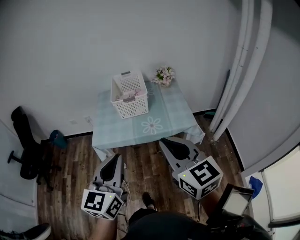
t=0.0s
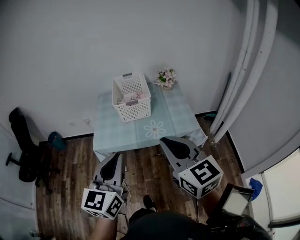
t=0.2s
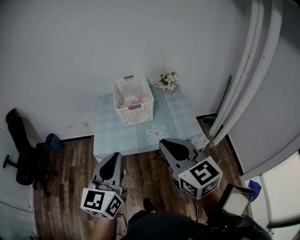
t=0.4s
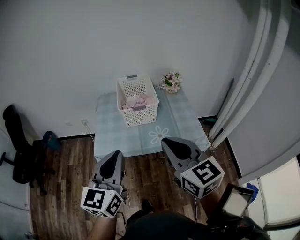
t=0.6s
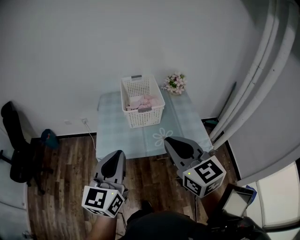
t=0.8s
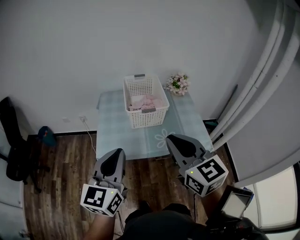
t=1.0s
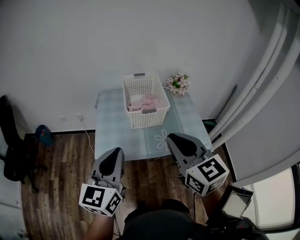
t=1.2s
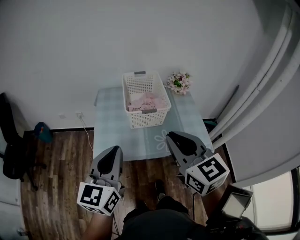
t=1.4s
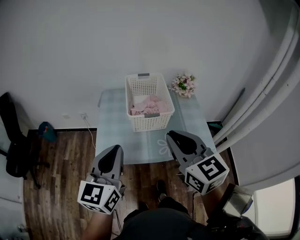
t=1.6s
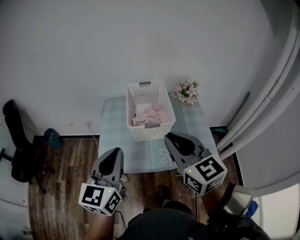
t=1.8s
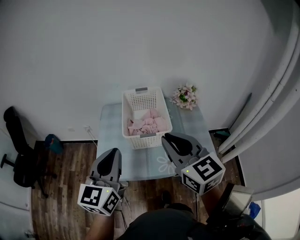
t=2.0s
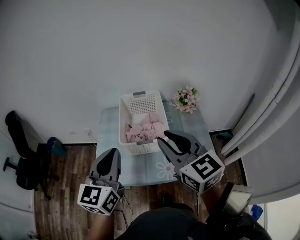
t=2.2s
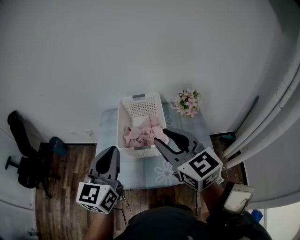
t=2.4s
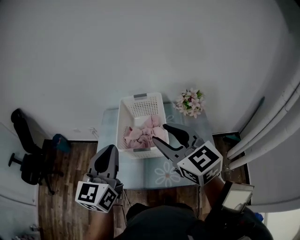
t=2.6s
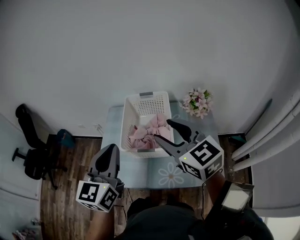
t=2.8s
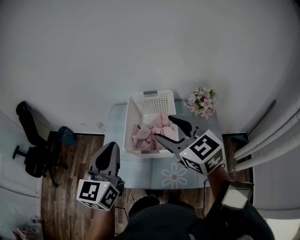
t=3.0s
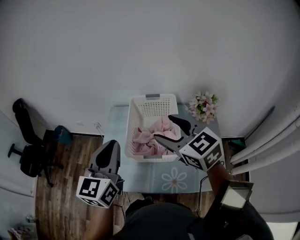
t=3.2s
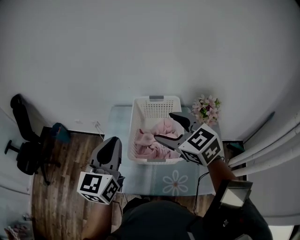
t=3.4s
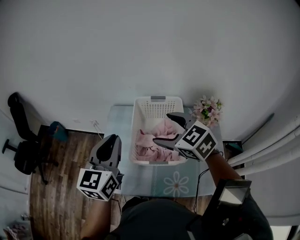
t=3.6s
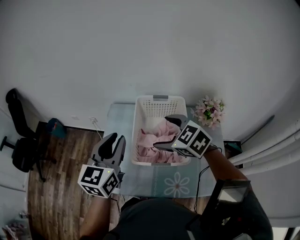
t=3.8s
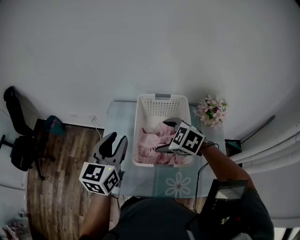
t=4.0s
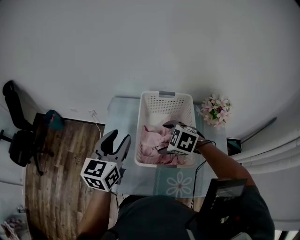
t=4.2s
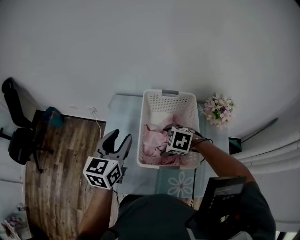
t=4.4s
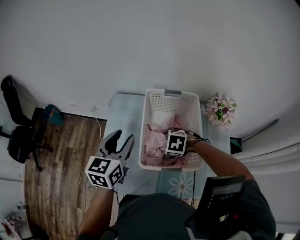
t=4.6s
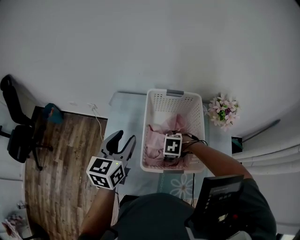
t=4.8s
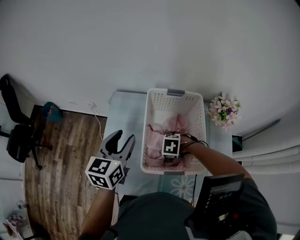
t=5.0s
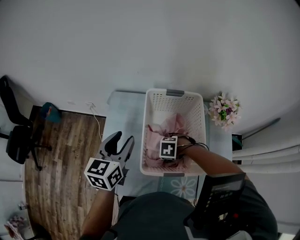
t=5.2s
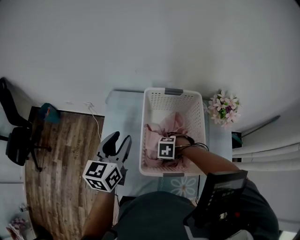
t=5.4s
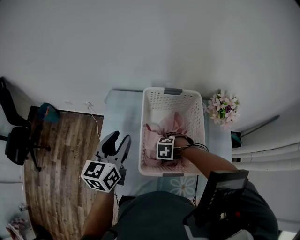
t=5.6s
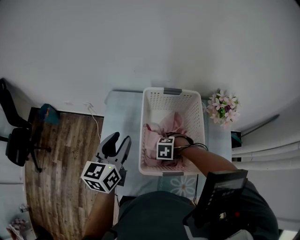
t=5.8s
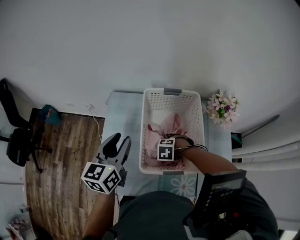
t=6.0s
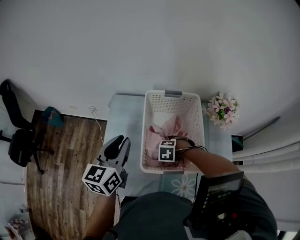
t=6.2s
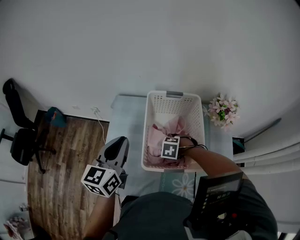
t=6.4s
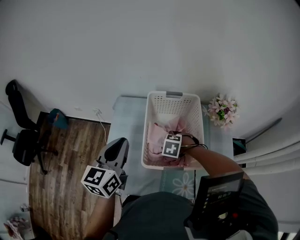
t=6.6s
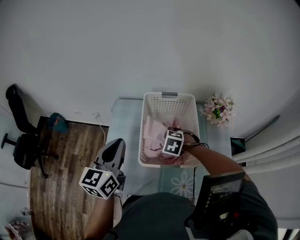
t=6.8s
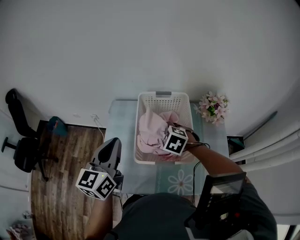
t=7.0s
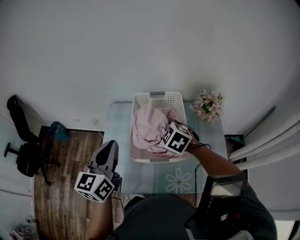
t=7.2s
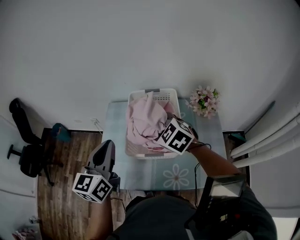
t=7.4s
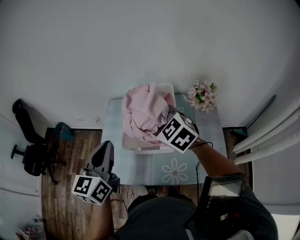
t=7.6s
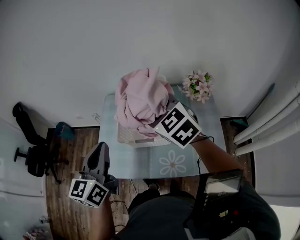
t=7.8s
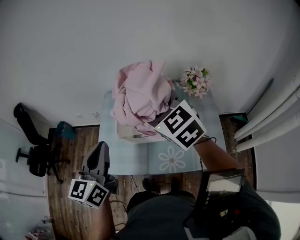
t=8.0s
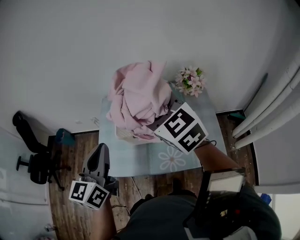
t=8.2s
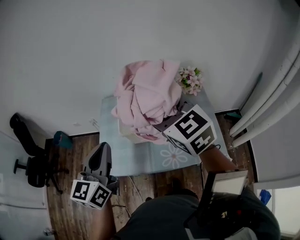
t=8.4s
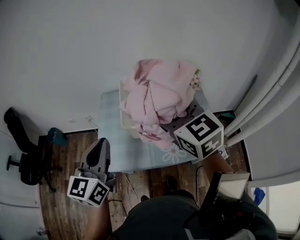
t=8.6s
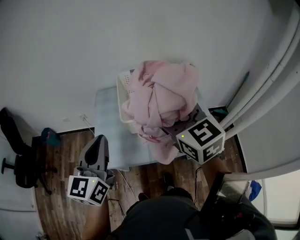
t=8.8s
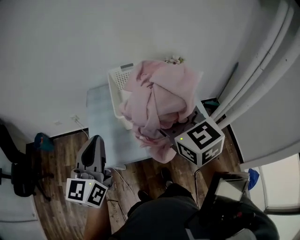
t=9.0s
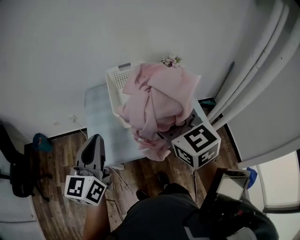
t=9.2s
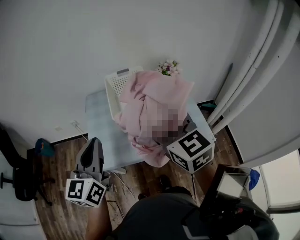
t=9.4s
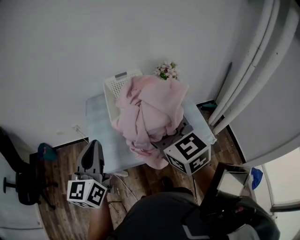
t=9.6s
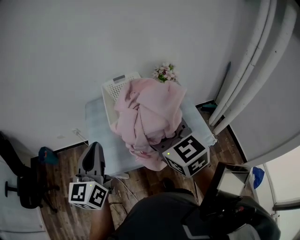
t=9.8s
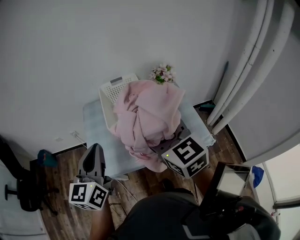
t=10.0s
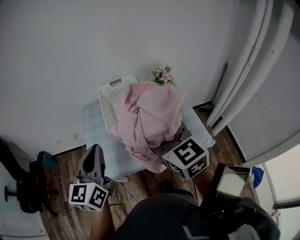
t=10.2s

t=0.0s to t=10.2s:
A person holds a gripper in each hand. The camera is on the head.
t=0.0s to t=1.4s: Both grippers travel together forward and to the left, approximately 25 cm.
t=1.4s to t=3.0s: The right gripper heads forward, covering roughly 25 cm, turns by about 20 degrees, and opens its fingers. Meanwhile the left gripper moves forward and to the right, approximately 25 cm.
t=3.0s to t=4.4s: The left gripper shifts about 20 cm forward and downward, and opens, while the right gripper goes some 30 cm downward and forward, points its fingers approximately 50 degrees further downward, and opens its fingers.
t=4.4s to t=5.8s: The right gripper travels downward by approximately 15 cm, and turns by roughly 20 degrees.
t=5.8s to t=7.2s: The left gripper heads upward, covering roughly 10 cm, and closes. Meanwhile the right gripper heads upward, covering about 20 cm, and points its fingers about 40 degrees further upward.
t=7.2s to t=8.8s: The left gripper heads backward, covering roughly 15 cm, while the right gripper is displaced backward and upward by approximately 30 cm, and tilts its fingers roughly 40 degrees upward.
t=8.8s to t=10.2s: The right gripper ends up roughly 5 cm from where it was.

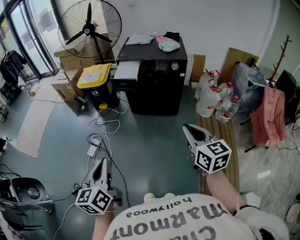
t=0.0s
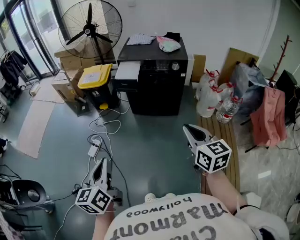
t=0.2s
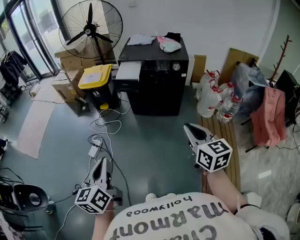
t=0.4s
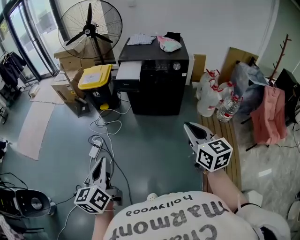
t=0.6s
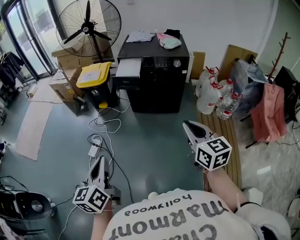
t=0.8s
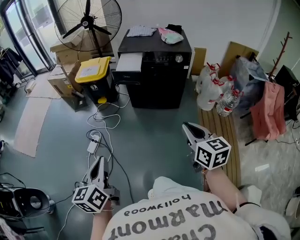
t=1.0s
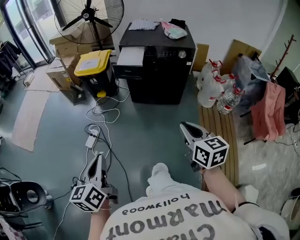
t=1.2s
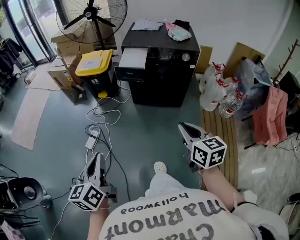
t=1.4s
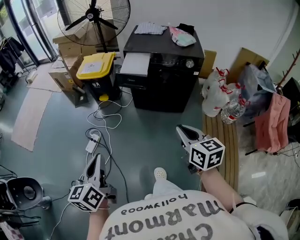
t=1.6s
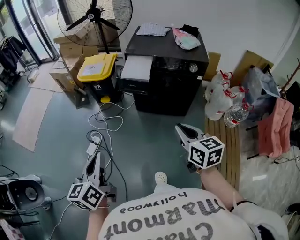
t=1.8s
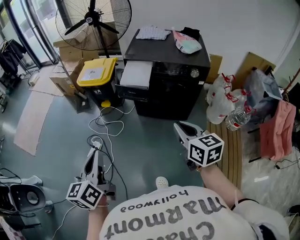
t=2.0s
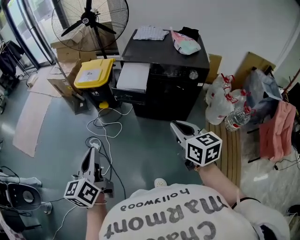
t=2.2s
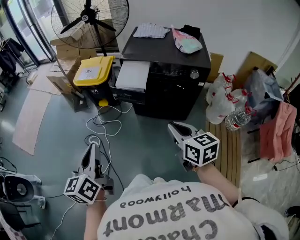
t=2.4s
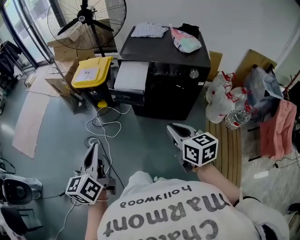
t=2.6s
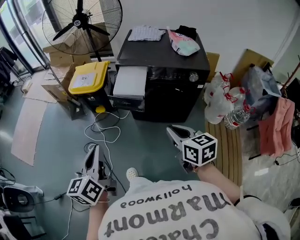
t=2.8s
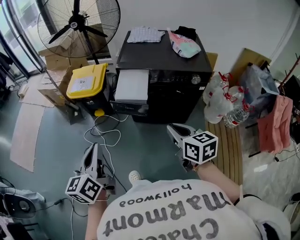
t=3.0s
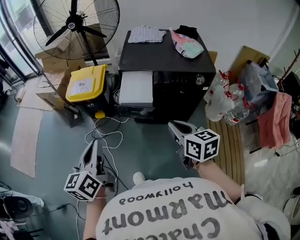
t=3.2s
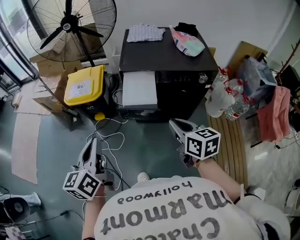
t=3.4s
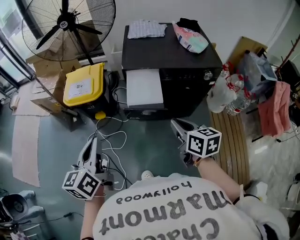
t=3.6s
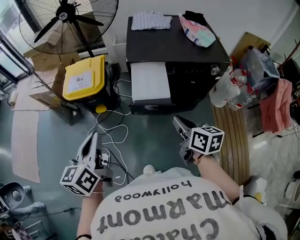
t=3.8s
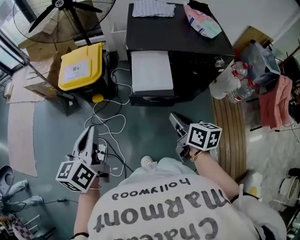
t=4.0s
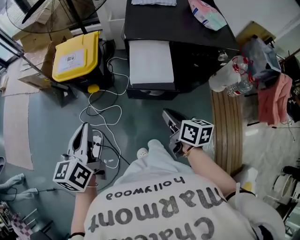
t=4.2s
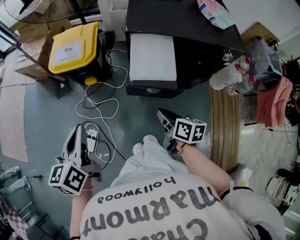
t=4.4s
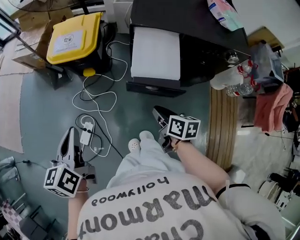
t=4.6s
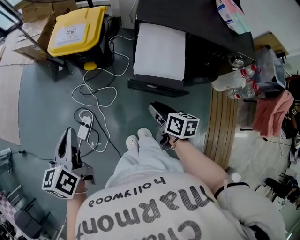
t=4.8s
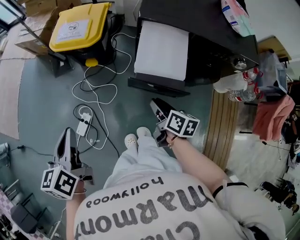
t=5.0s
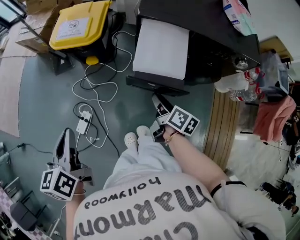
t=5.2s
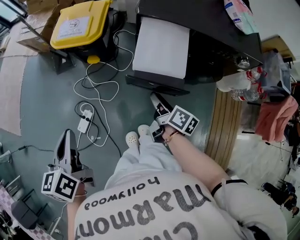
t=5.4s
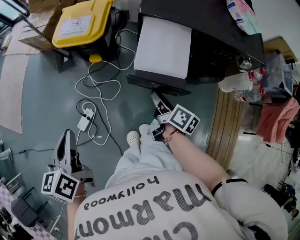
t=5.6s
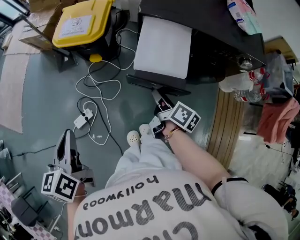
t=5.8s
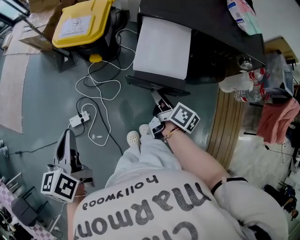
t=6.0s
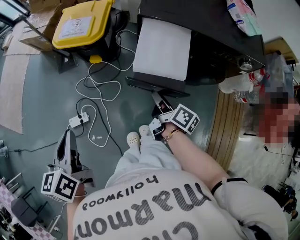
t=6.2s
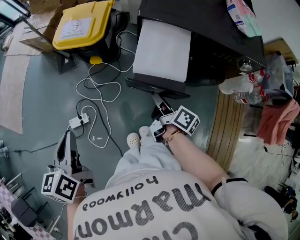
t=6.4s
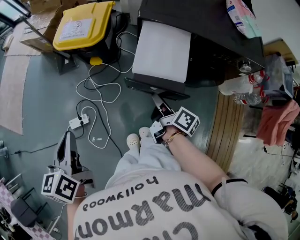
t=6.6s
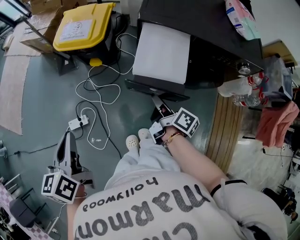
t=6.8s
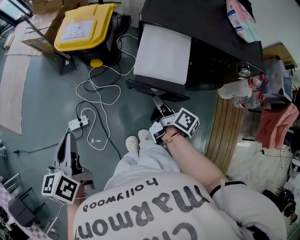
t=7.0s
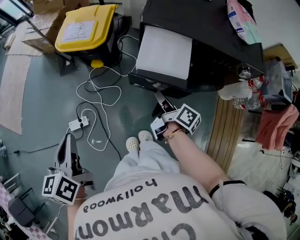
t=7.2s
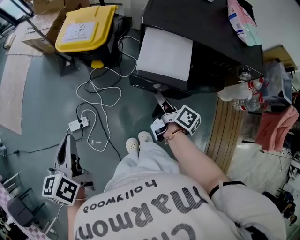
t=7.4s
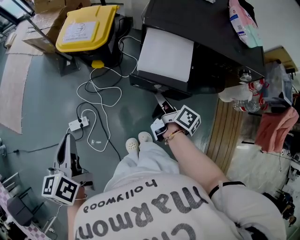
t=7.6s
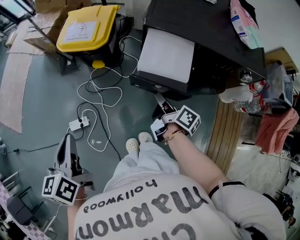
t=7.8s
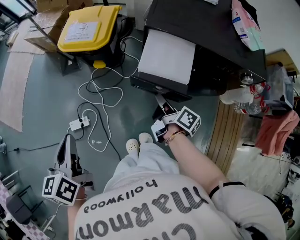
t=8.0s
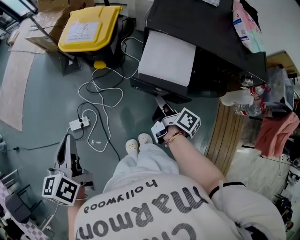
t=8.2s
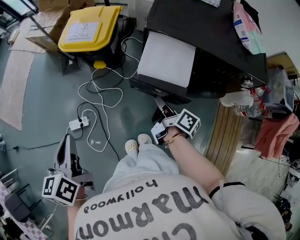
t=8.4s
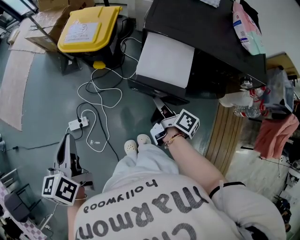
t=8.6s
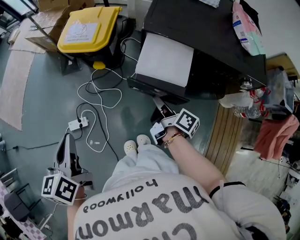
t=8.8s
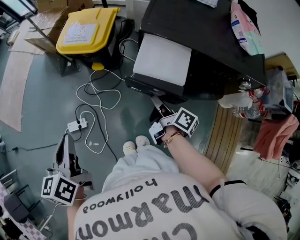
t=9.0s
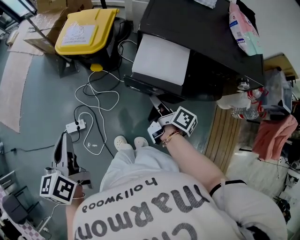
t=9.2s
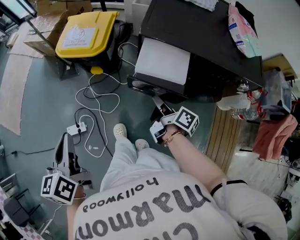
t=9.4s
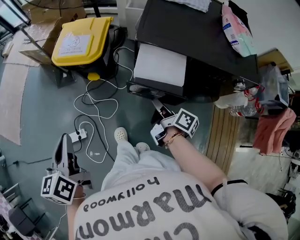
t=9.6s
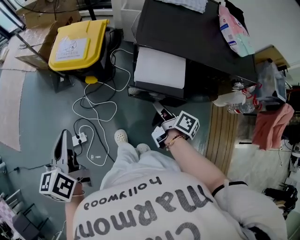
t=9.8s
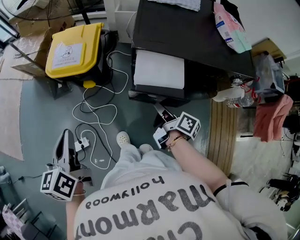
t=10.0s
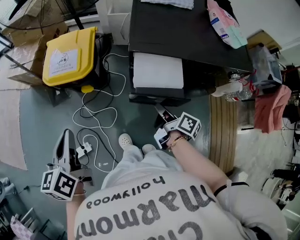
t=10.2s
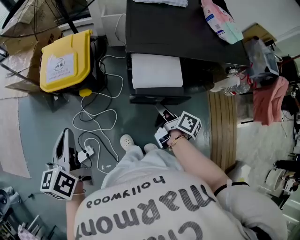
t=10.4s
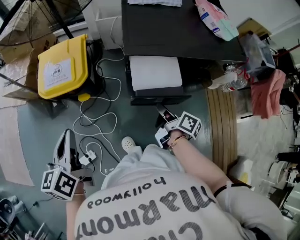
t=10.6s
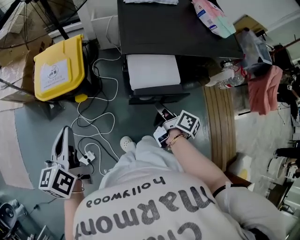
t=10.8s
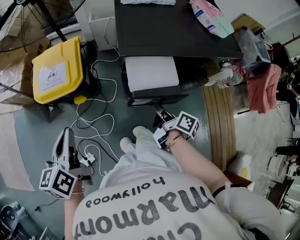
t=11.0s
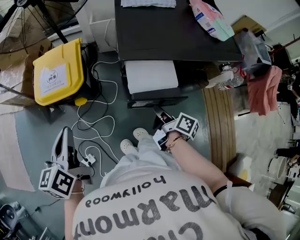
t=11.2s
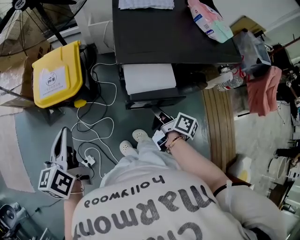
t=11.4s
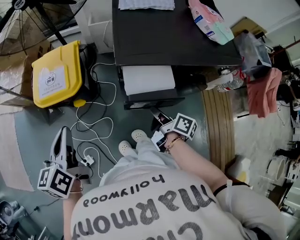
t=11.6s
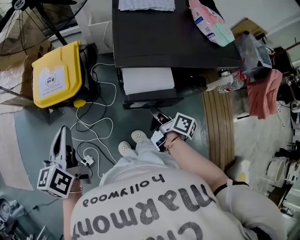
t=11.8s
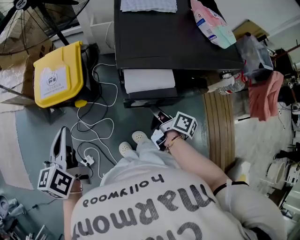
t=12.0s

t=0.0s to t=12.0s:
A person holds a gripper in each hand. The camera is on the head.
t=0.0s to t=1.6s: The left gripper is displaced forward and to the left by roughly 15 cm. Meanwhile the right gripper shifts about 15 cm forward, to the left and downward.
t=1.6s to t=3.0s: The two grippers go approximately 25 cm forward.
t=3.0s to t=4.4s: The left gripper goes approximately 25 cm forward, to the left and downward. Meanwhile the right gripper travels downward, to the left and forward by approximately 25 cm, and changes its angle by about 30 degrees.
t=4.4s to t=6.0s: The right gripper shifts roughly 5 cm forward, swivels roughly 30 degrees, and opens its fingers. Meanwhile the left gripper moves about 5 cm.
t=6.0s to t=9.0s: There are only small adjustments of the grippers.
t=9.0s to t=10.4s: The left gripper goes some 15 cm forward.
t=10.4s to t=12.0s: The left gripper heads forward, covering about 5 cm.

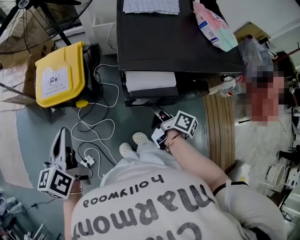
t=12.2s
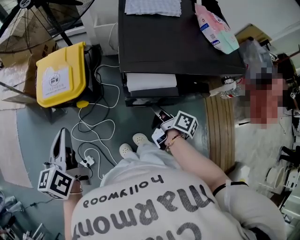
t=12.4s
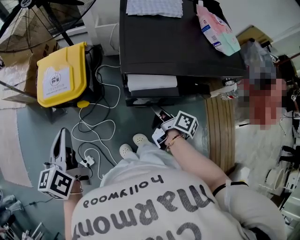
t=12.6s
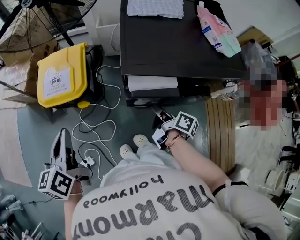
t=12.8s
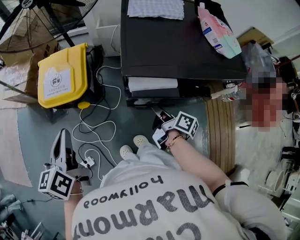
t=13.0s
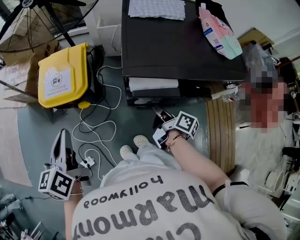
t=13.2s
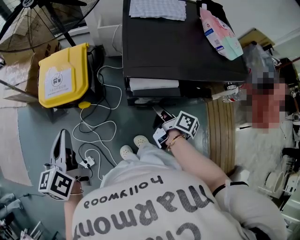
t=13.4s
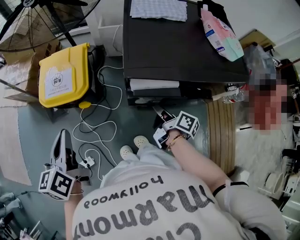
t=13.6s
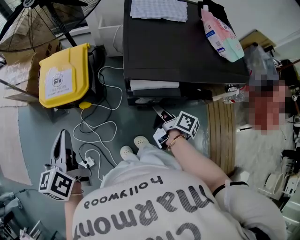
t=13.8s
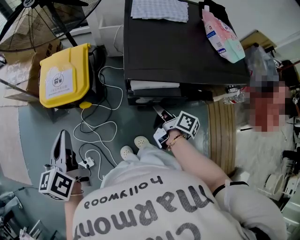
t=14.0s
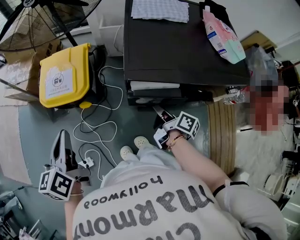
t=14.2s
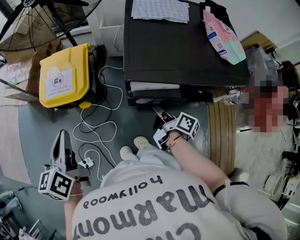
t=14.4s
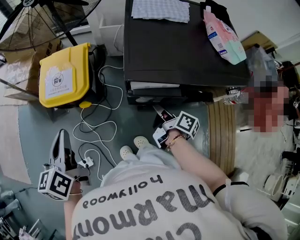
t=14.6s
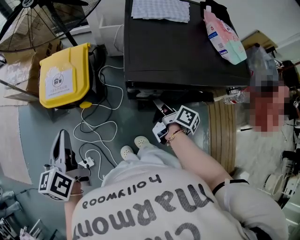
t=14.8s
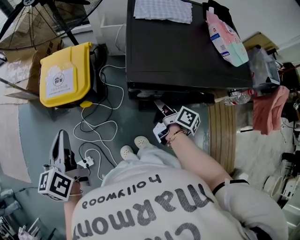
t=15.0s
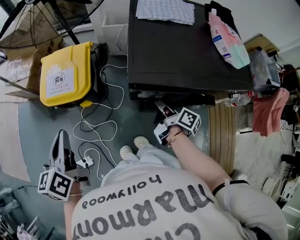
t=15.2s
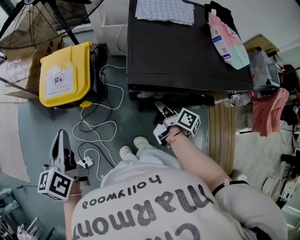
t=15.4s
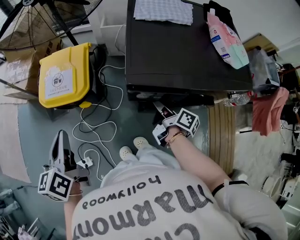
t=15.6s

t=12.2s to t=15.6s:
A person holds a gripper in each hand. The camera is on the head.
t=12.2s to t=13.8s: The grippers stay close to where they were, moving slightly.
t=13.8s to t=15.6s: The grippers move only a little.
